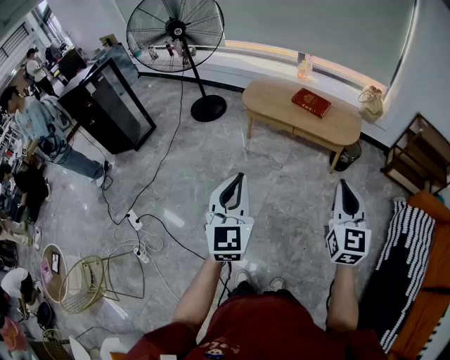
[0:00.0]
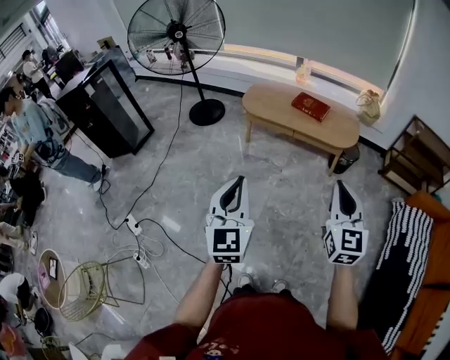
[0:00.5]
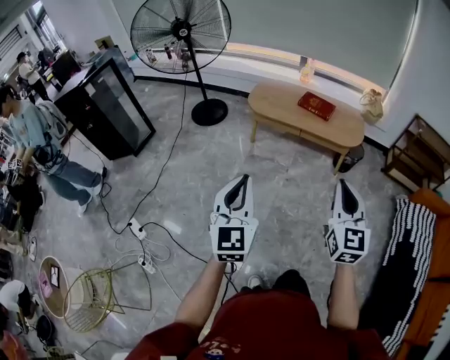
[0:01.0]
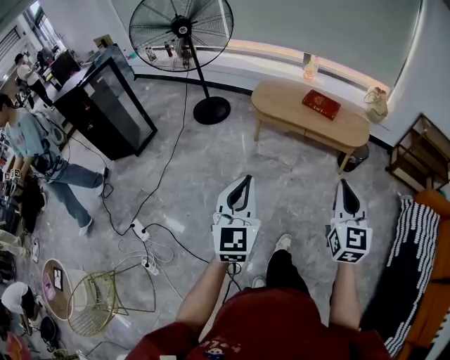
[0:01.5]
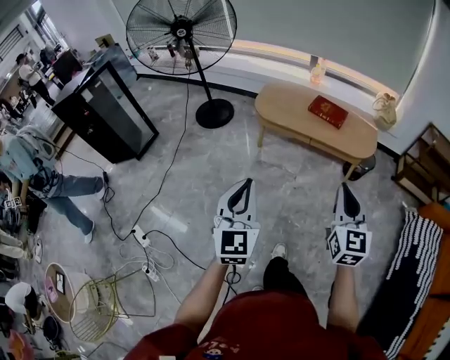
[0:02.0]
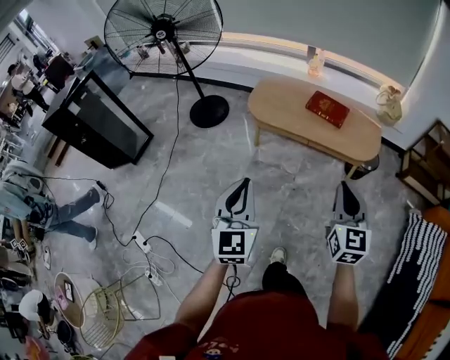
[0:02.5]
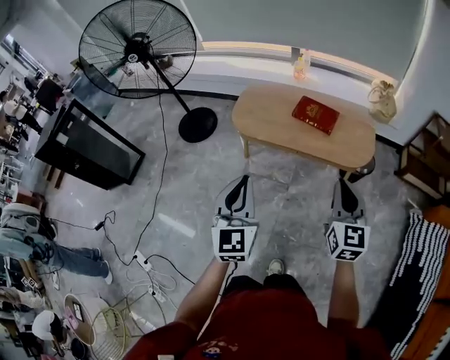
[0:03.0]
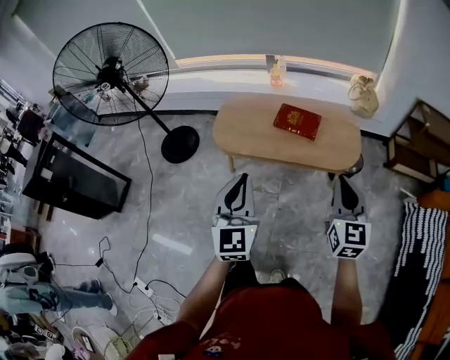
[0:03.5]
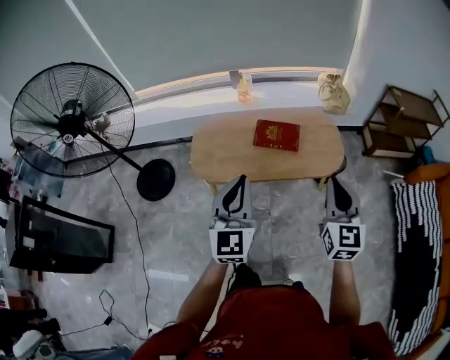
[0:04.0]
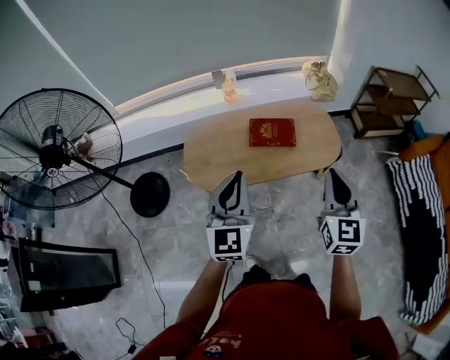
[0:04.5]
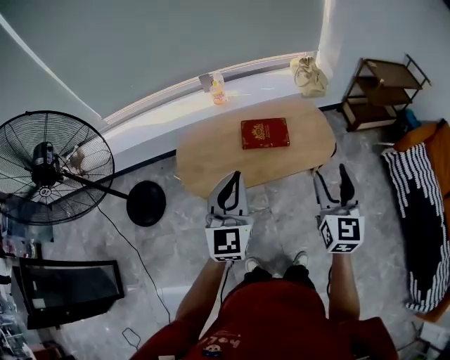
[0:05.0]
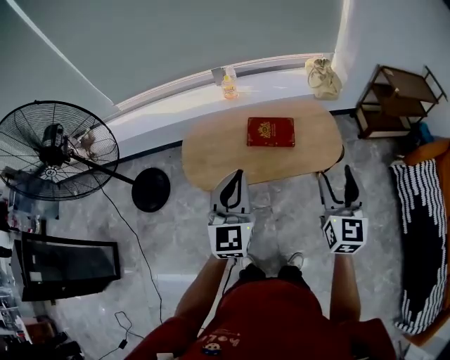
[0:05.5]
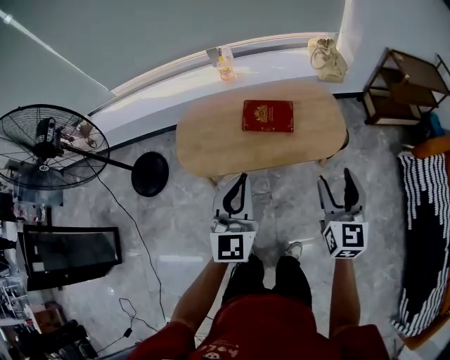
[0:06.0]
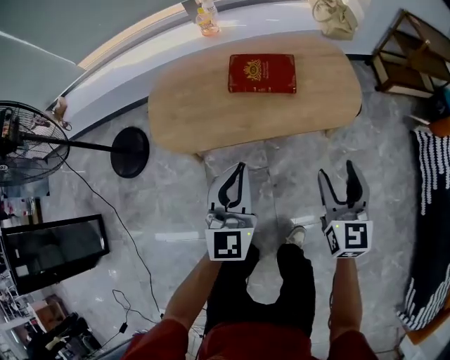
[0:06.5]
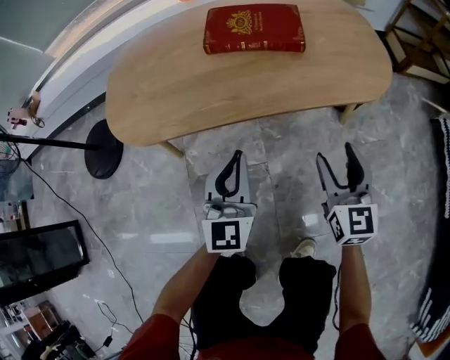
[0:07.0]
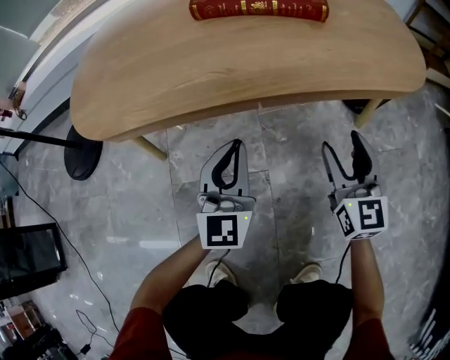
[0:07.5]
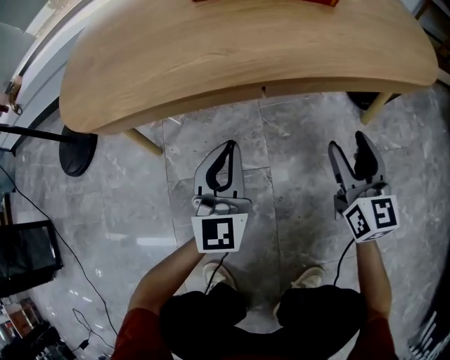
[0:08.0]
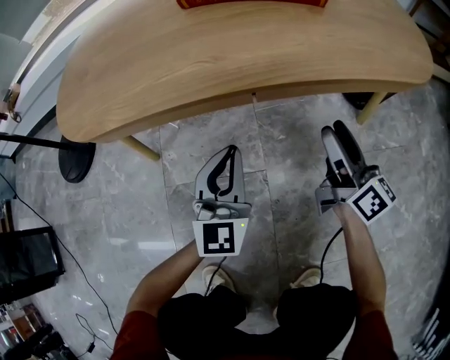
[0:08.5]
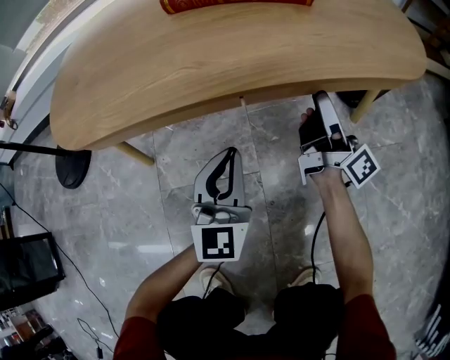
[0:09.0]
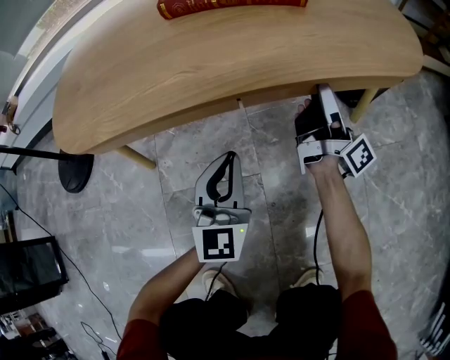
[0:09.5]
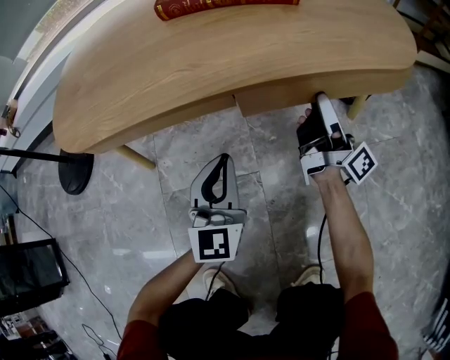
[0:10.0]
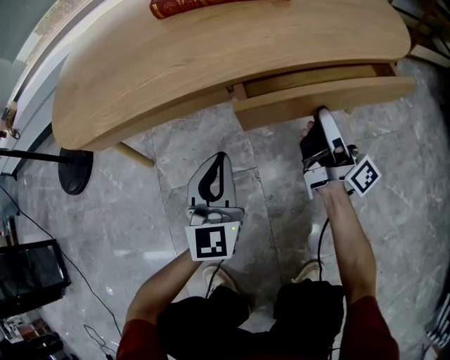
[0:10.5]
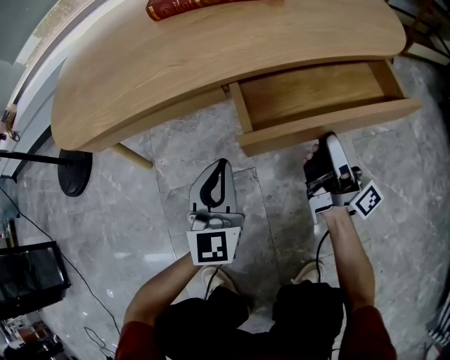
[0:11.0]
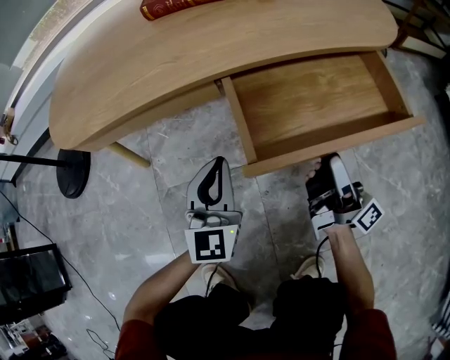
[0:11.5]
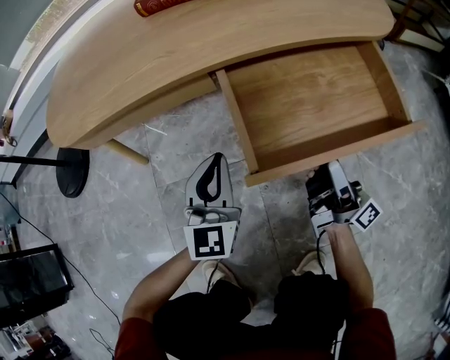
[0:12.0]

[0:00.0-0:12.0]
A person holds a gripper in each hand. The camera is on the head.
0:00.0 to 0:02.0: Both grippers move to the left and forward, some 20 cm.
0:02.0 to 0:04.0: The right gripper changes place by roughly 40 cm, and turns by about 20 degrees. Meanwhile the left gripper moves roughly 50 cm, and rotates some 30 degrees.
0:04.0 to 0:06.0: The right gripper travels downward and forward by approximately 10 cm, and opens up, while the left gripper is displaced forward and downward by about 10 cm.
0:06.0 to 0:08.0: The two grippers go approximately 70 cm downward.
0:08.0 to 0:10.0: The right gripper goes approximately 10 cm forward, and rotates around the line of its fingers by some 60 degrees, clockwise from behind.
0:10.0 to 0:12.0: The right gripper moves backward, roughly 20 cm.

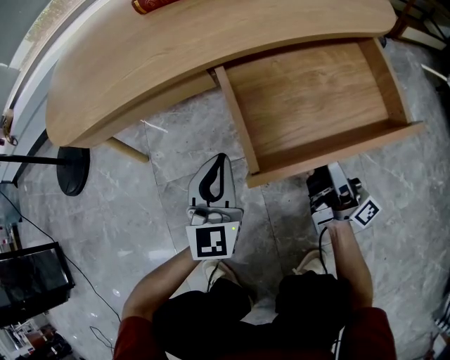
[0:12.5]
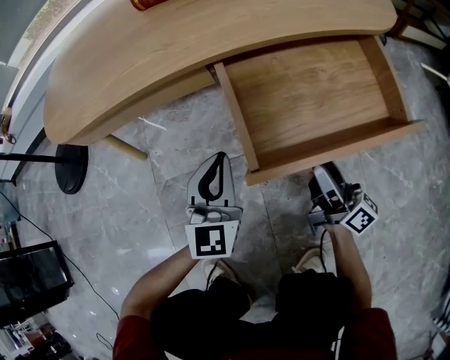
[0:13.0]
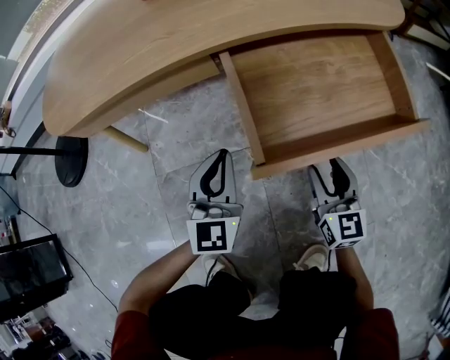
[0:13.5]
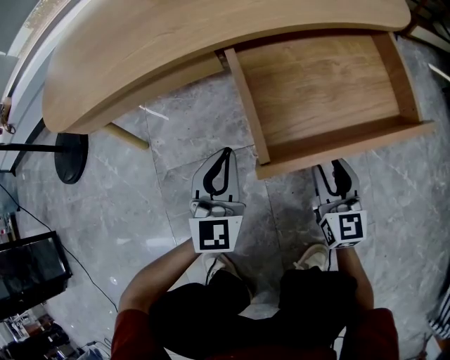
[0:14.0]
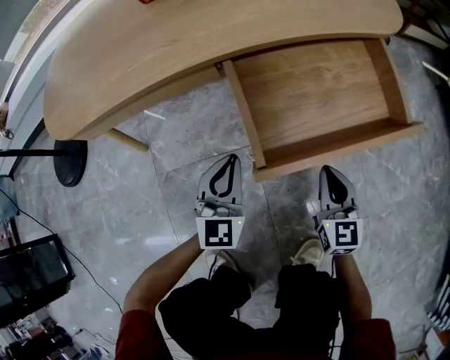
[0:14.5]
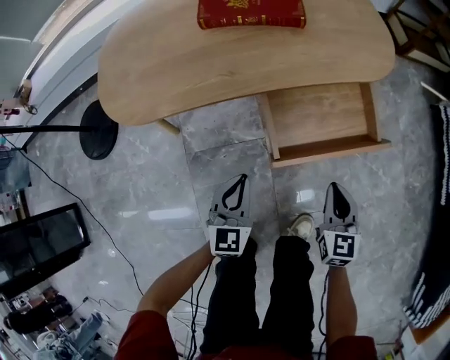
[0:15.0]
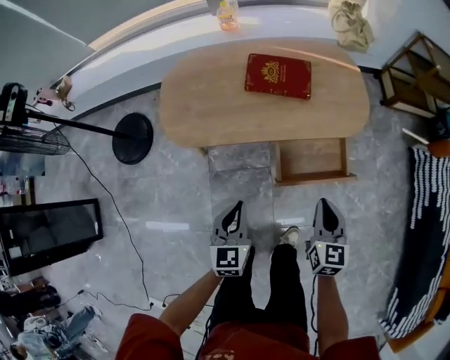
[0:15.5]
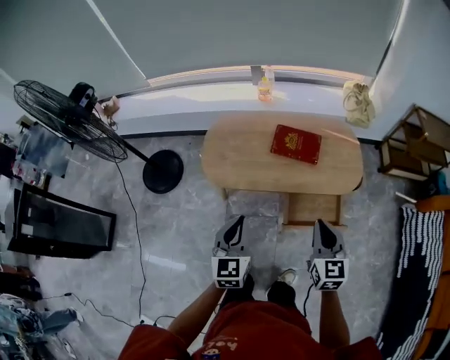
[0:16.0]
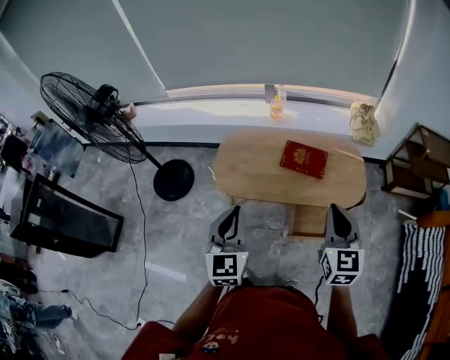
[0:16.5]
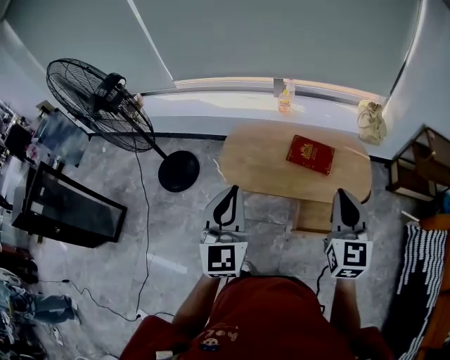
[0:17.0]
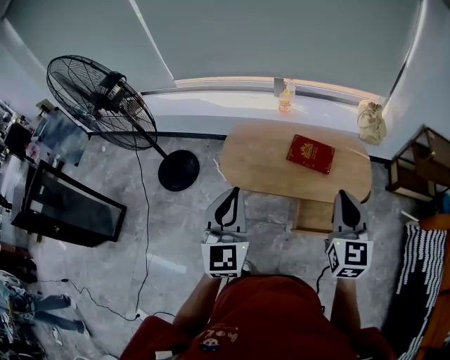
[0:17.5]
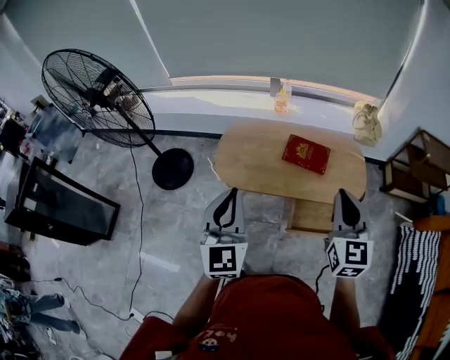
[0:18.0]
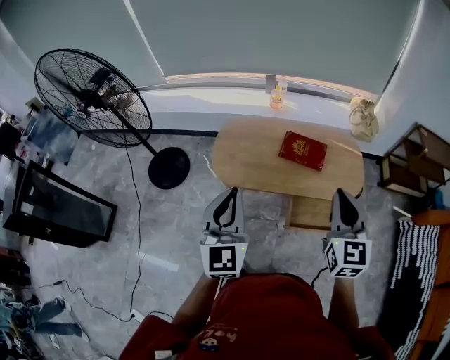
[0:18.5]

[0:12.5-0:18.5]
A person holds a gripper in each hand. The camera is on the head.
0:12.5 to 0:14.5: The right gripper is displaced downward by approximately 5 cm, tips its fingers downward by roughly 50 degrees, and closes.
0:14.5 to 0:16.5: Both grippers move upward, roughly 80 cm. The left gripper swivels roughly 30 degrees.

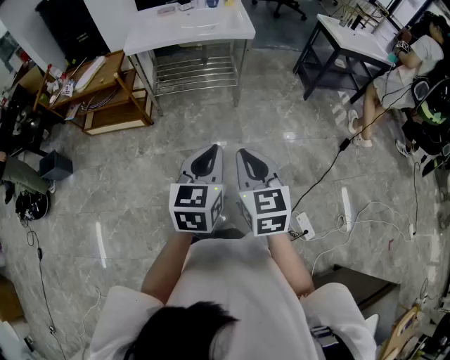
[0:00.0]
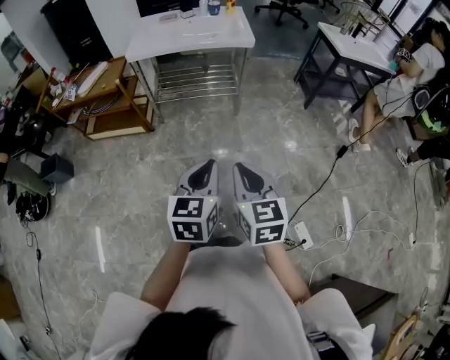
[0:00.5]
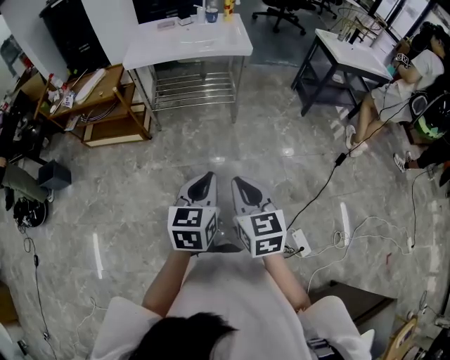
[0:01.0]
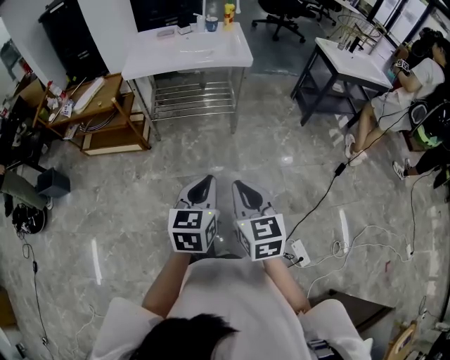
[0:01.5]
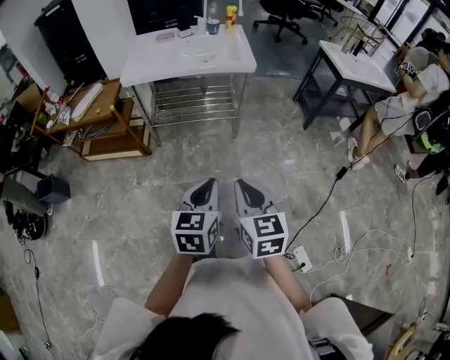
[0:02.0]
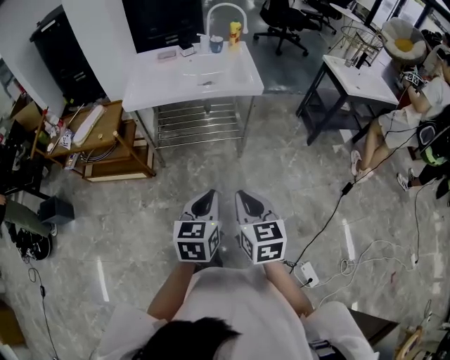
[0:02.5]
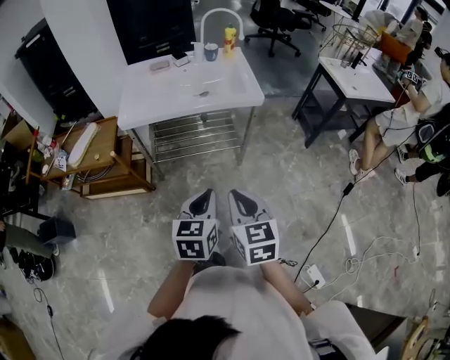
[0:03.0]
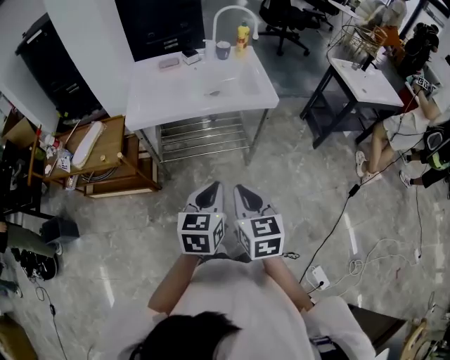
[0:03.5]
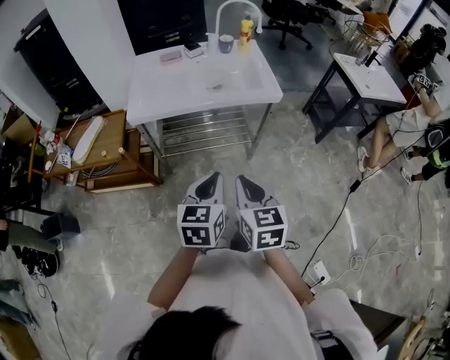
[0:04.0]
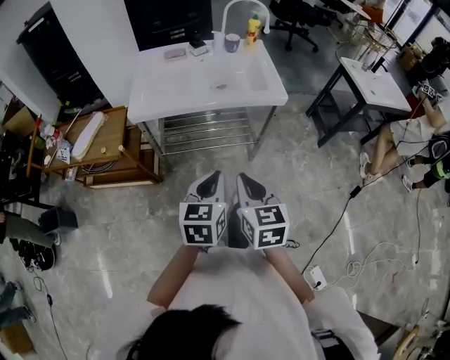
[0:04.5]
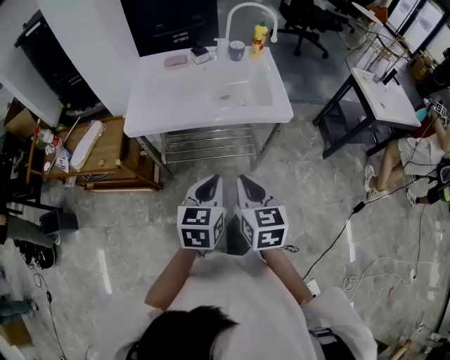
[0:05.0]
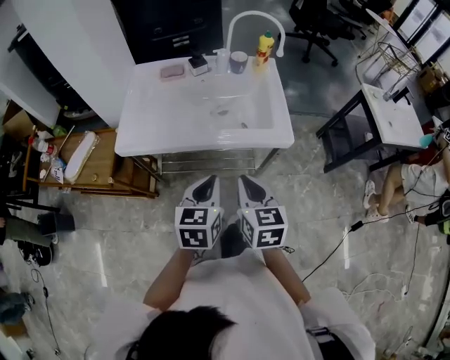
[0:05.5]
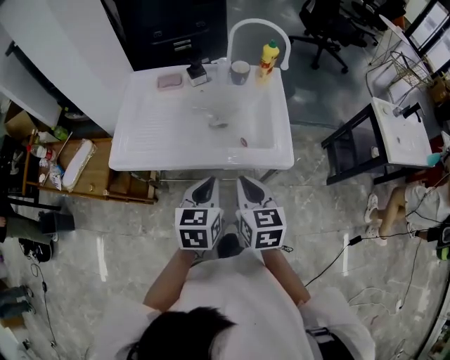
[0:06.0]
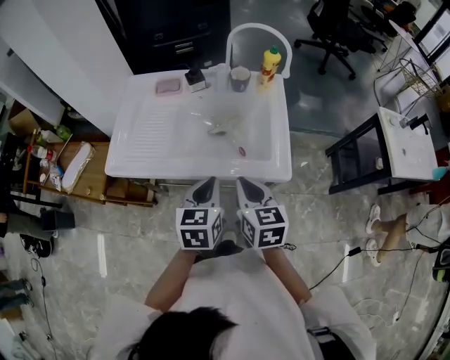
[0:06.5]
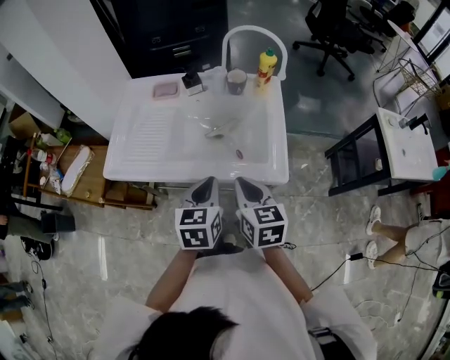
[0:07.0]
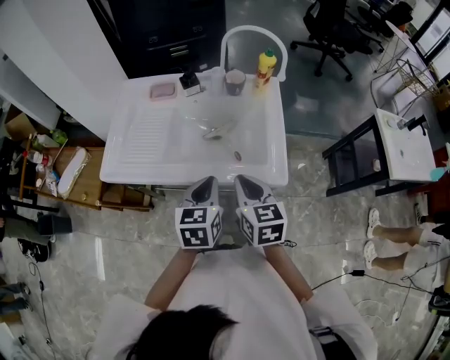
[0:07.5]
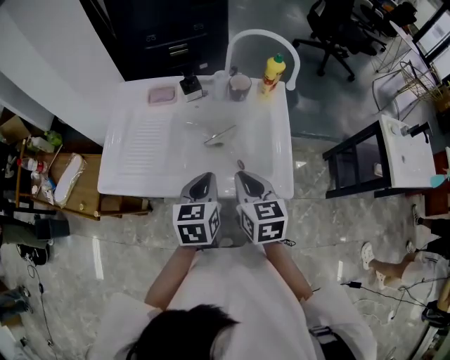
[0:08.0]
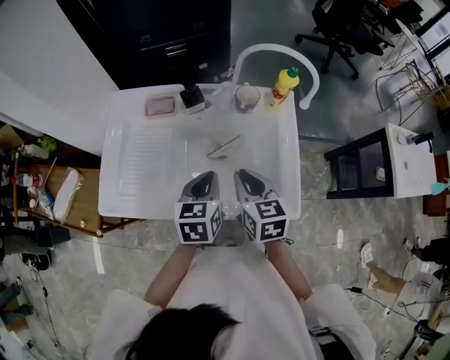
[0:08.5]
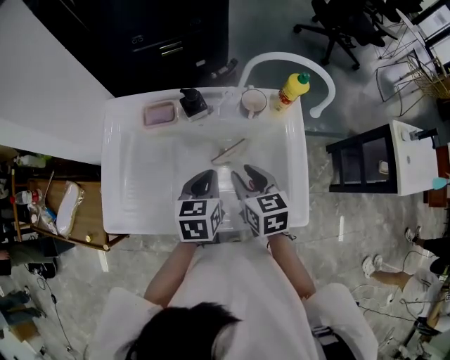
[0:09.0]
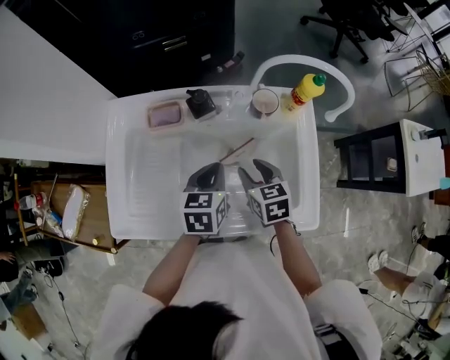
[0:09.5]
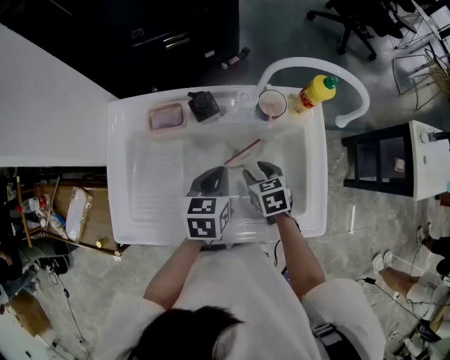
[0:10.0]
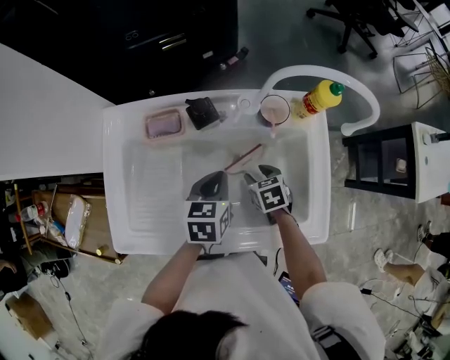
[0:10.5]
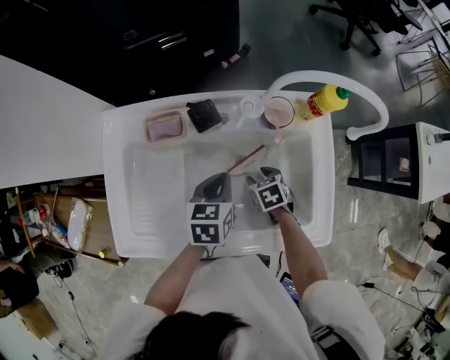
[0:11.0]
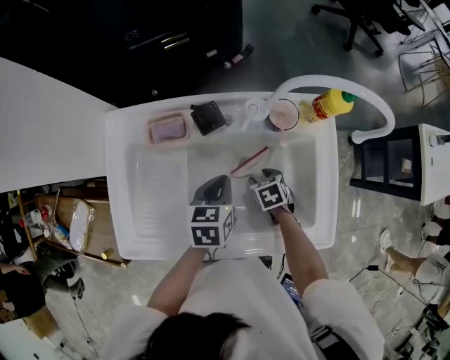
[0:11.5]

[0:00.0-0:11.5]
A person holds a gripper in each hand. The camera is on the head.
0:00.0 to 0:02.0: The grippers both shift forward by some 10 cm.
0:02.0 to 0:04.0: The grippers both shift forward and to the left by roughly 25 cm.
0:04.0 to 0:06.0: The grippers both shift forward by about 30 cm.
0:06.0 to 0:07.5: The two grippers go some 5 cm forward.
0:07.5 to 0:09.5: The right gripper travels forward and downward by about 25 cm, and opens its fingers; the left gripper heads forward, covering some 25 cm.
0:09.5 to 0:11.5: The right gripper shifts approximately 15 cm downward, and swivels some 30 degrees, while the left gripper shifts approximately 5 cm downward.
